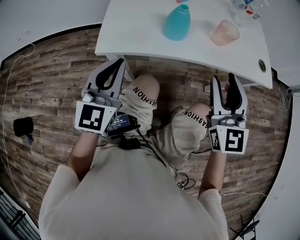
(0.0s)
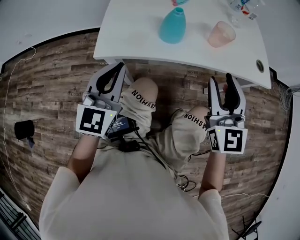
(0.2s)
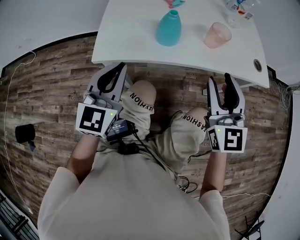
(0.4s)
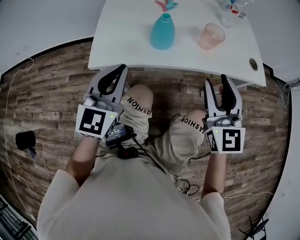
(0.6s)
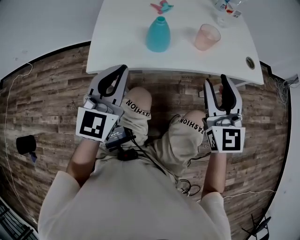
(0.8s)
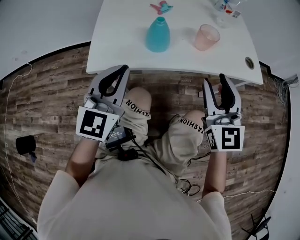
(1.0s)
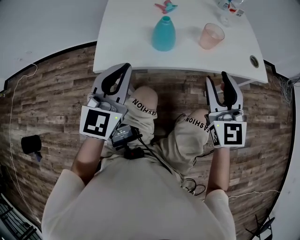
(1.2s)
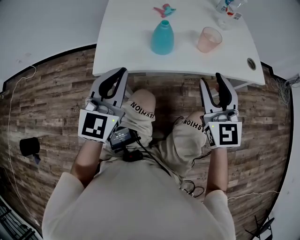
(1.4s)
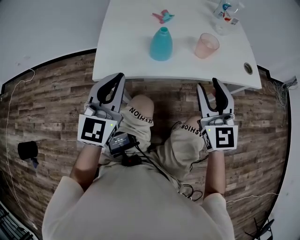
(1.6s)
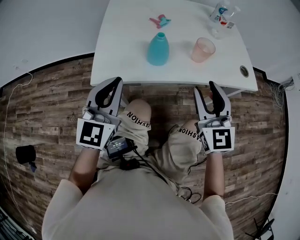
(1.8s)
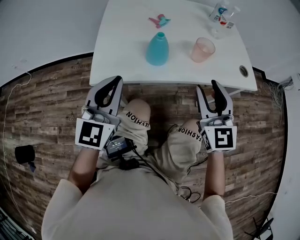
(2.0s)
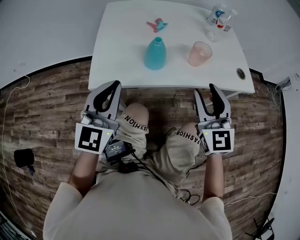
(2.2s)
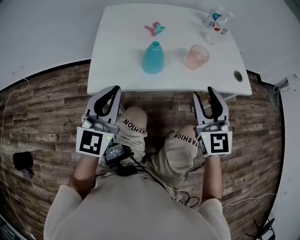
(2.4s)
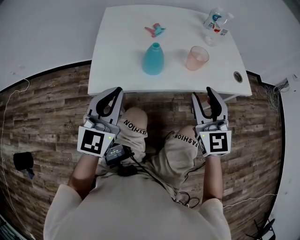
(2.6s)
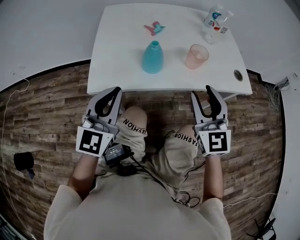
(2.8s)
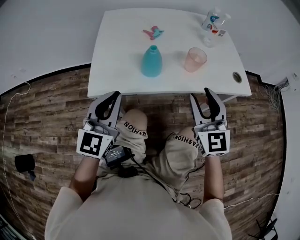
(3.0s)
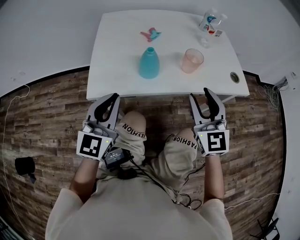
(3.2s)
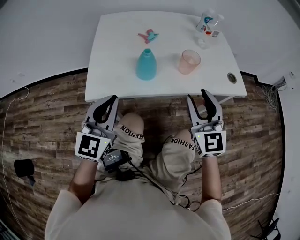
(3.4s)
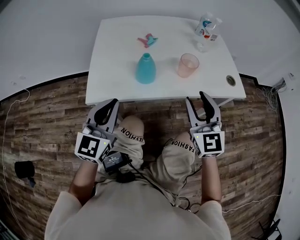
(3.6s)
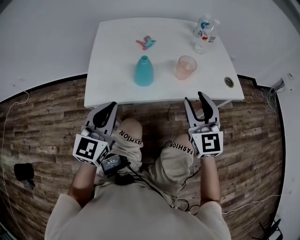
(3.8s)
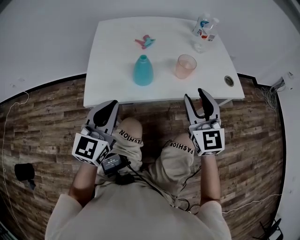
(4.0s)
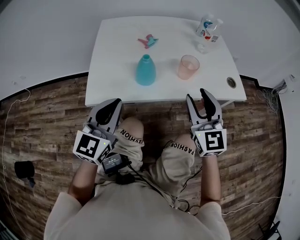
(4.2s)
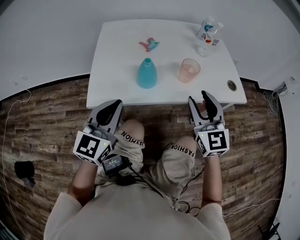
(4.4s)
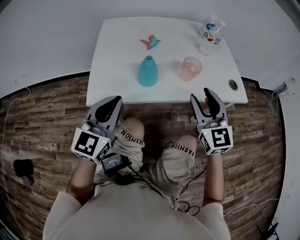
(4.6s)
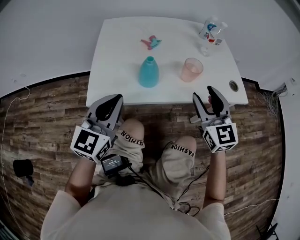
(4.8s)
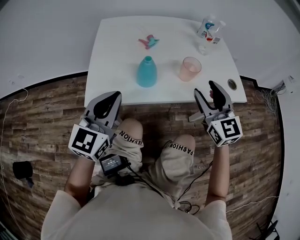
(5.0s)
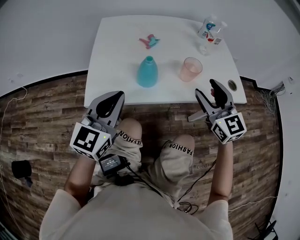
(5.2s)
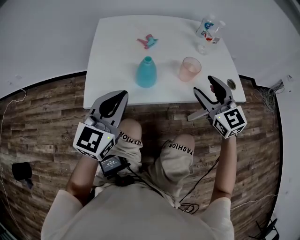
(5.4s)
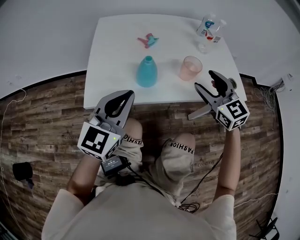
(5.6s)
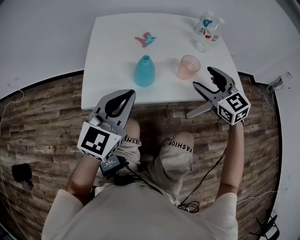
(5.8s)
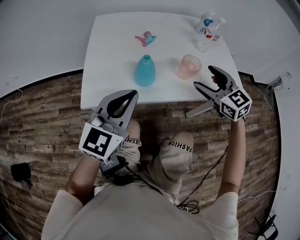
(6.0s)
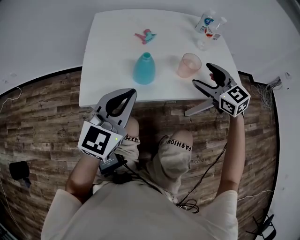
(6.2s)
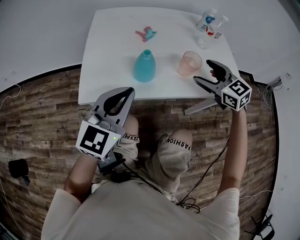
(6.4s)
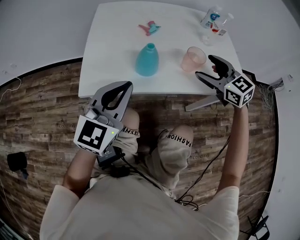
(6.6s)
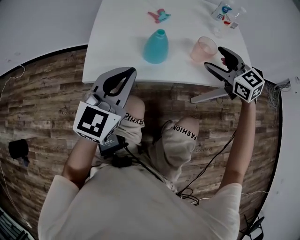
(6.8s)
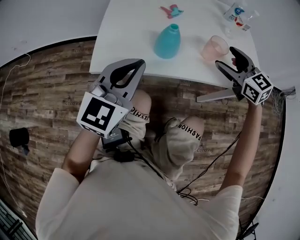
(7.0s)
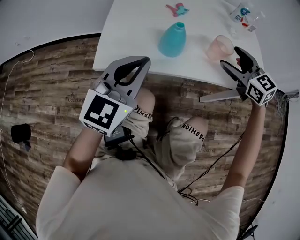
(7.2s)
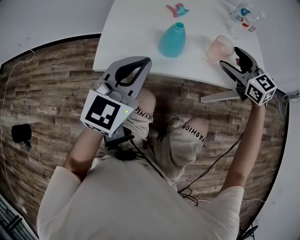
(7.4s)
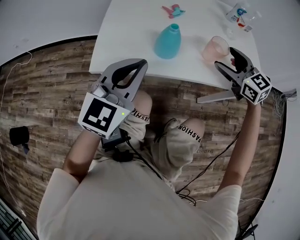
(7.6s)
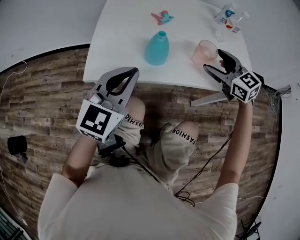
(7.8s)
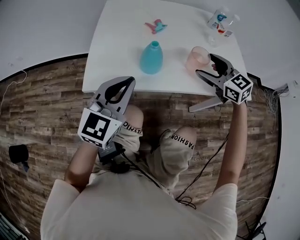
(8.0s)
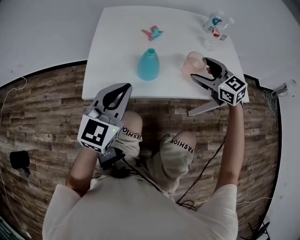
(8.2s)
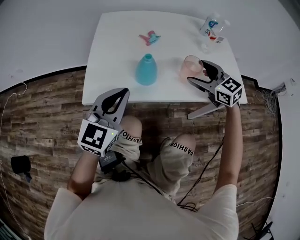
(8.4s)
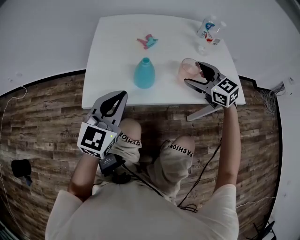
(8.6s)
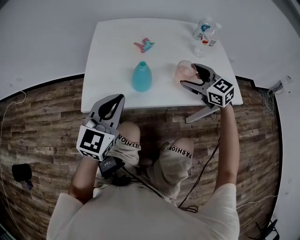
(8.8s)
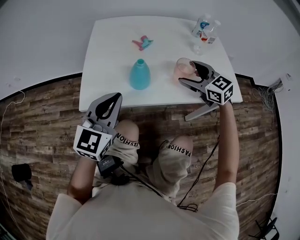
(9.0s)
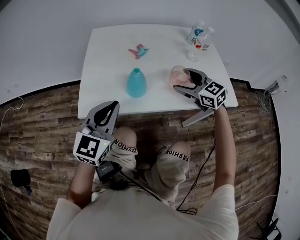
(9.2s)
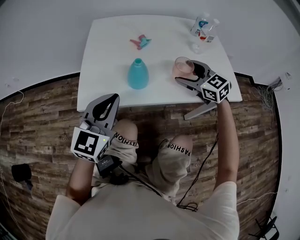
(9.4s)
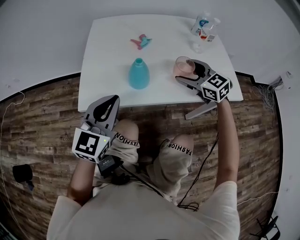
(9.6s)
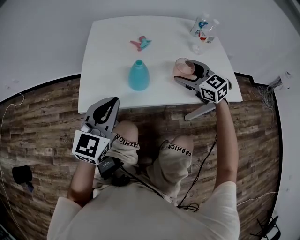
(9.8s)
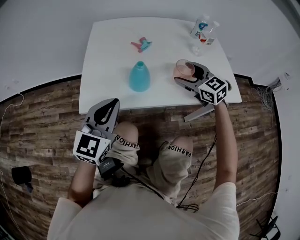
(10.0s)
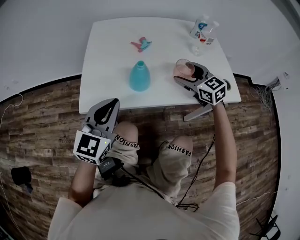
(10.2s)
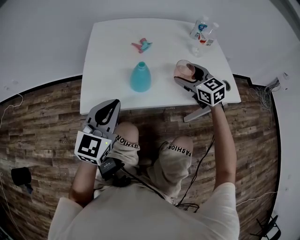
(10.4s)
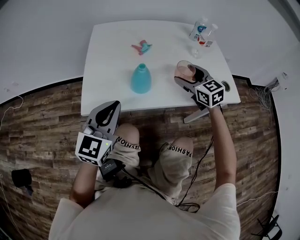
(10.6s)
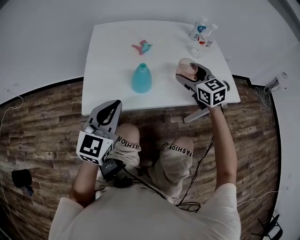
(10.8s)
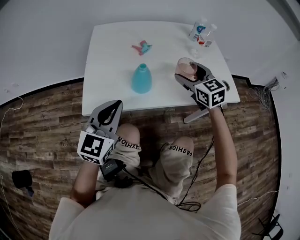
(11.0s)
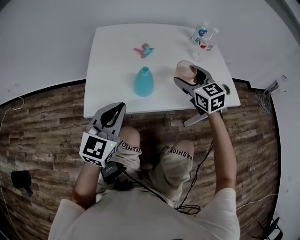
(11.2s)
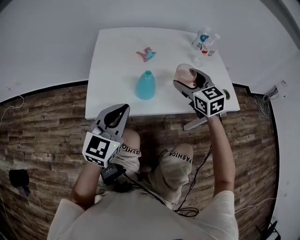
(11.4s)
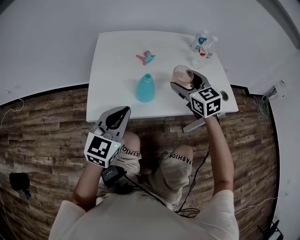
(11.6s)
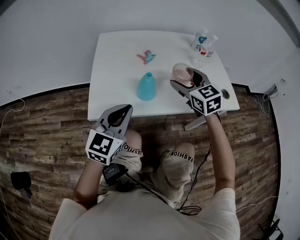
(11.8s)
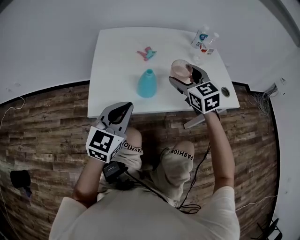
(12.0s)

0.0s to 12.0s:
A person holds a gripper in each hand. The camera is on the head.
0.0s to 1.6s: The left gripper ends up some 5 cm from where it was.
1.6s to 4.4s: The grippers make only small movements.
4.4s to 6.0s: The left gripper moves approximately 5 cm, while the right gripper travels forward by some 10 cm, turns by approximately 30 degrees, and opens up.
6.0s to 9.0s: The grippers make only small movements.
9.0s to 10.4s: There are only small adjustments of the grippers.
10.4s to 12.0s: The right gripper travels upward and to the left by roughly 10 cm.

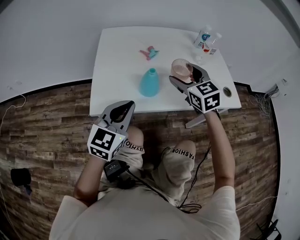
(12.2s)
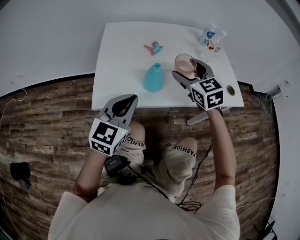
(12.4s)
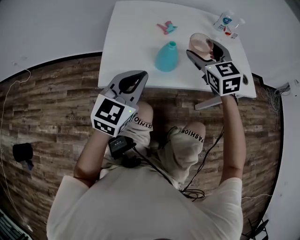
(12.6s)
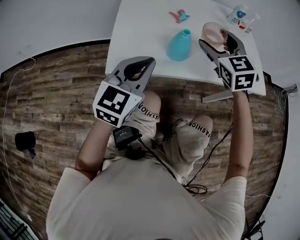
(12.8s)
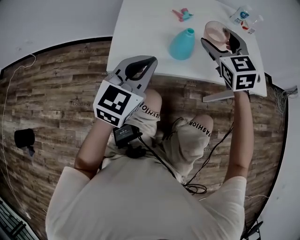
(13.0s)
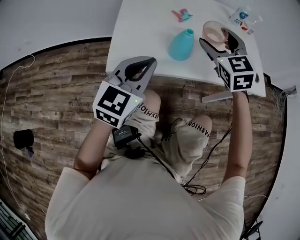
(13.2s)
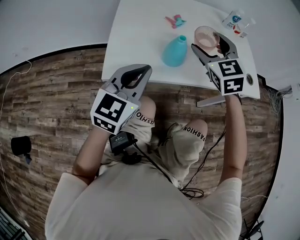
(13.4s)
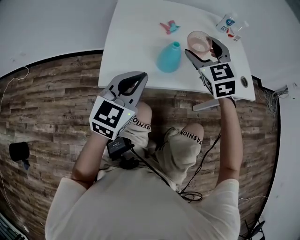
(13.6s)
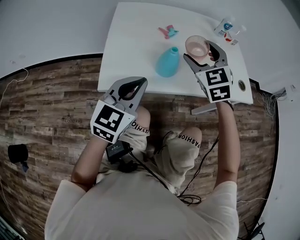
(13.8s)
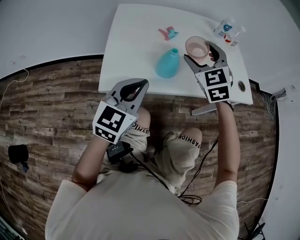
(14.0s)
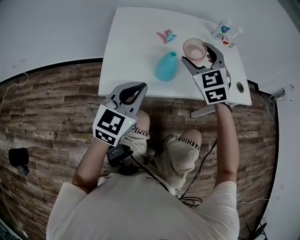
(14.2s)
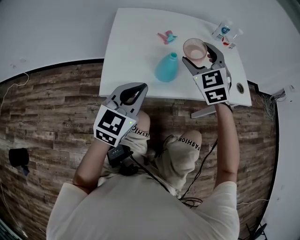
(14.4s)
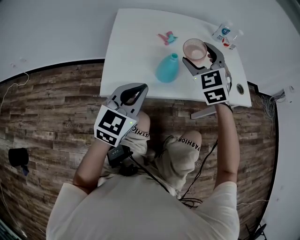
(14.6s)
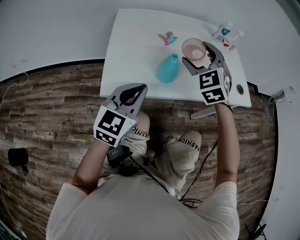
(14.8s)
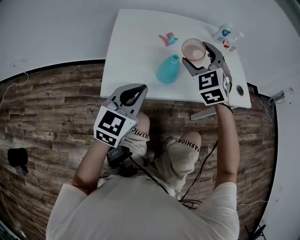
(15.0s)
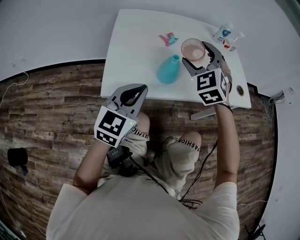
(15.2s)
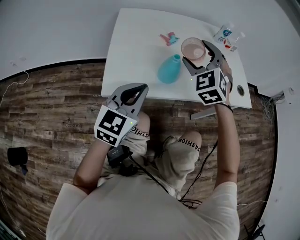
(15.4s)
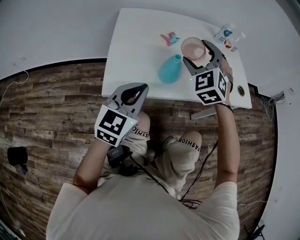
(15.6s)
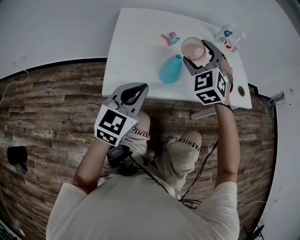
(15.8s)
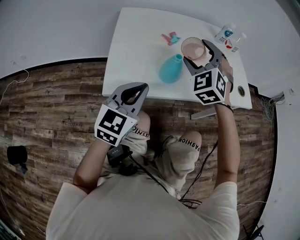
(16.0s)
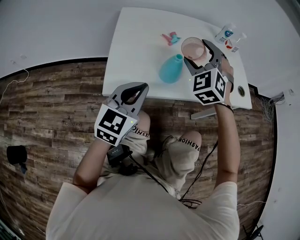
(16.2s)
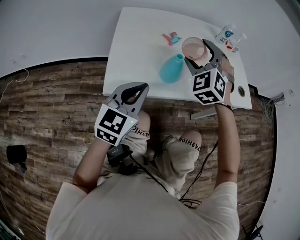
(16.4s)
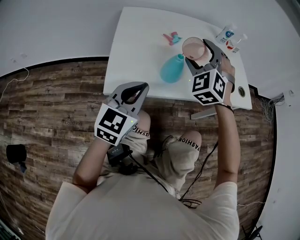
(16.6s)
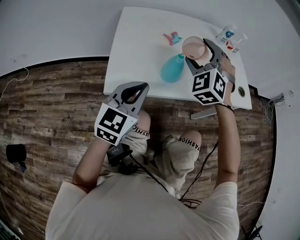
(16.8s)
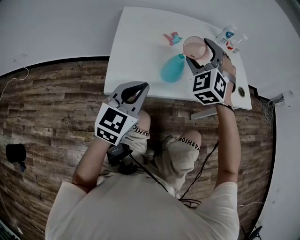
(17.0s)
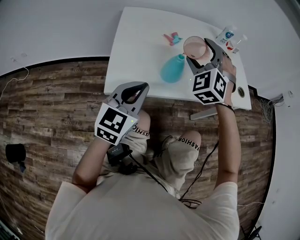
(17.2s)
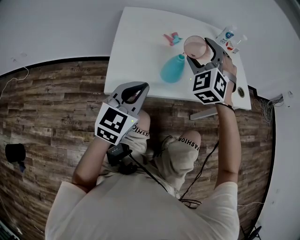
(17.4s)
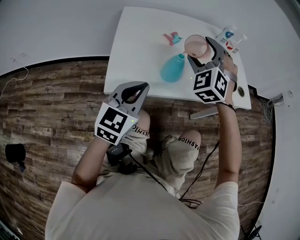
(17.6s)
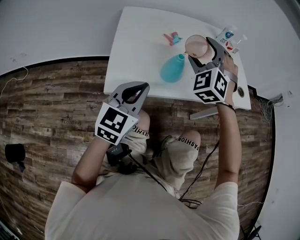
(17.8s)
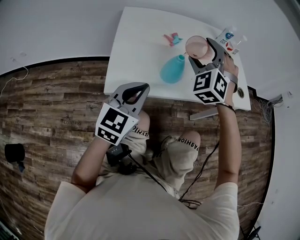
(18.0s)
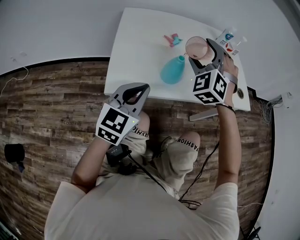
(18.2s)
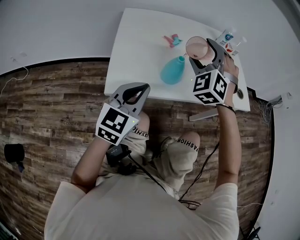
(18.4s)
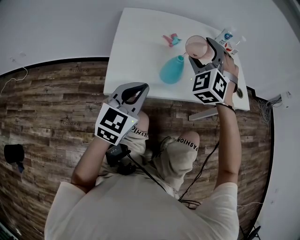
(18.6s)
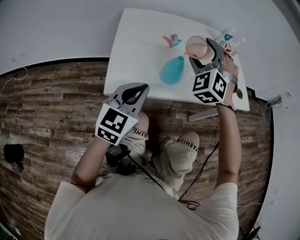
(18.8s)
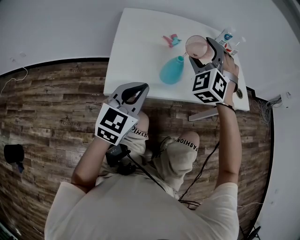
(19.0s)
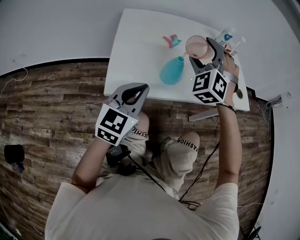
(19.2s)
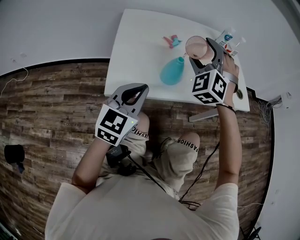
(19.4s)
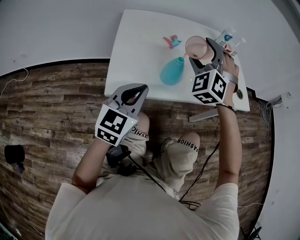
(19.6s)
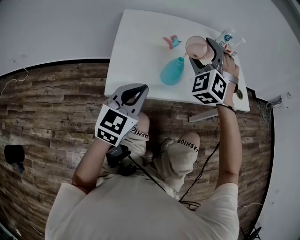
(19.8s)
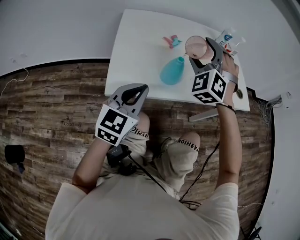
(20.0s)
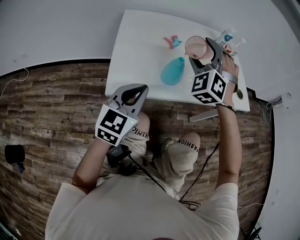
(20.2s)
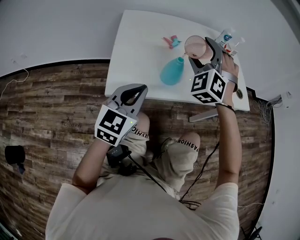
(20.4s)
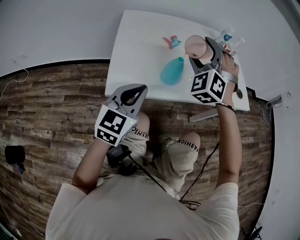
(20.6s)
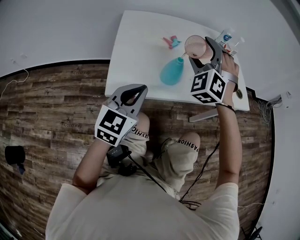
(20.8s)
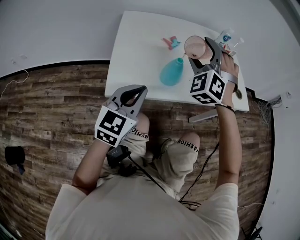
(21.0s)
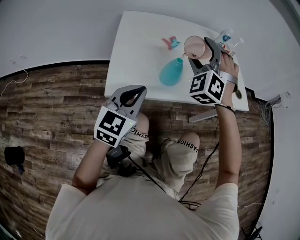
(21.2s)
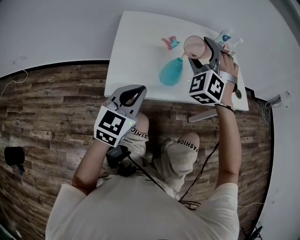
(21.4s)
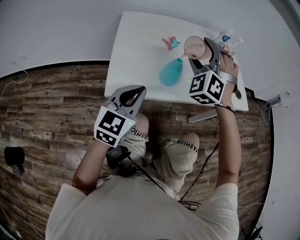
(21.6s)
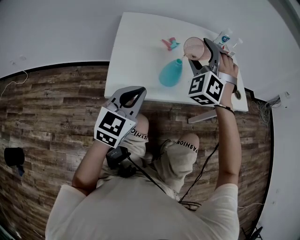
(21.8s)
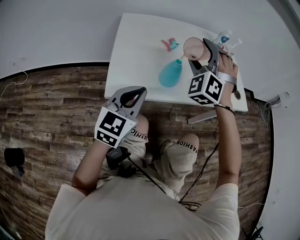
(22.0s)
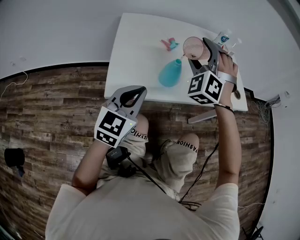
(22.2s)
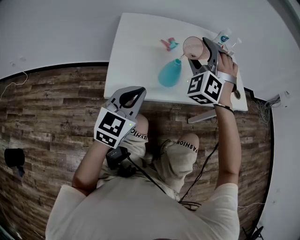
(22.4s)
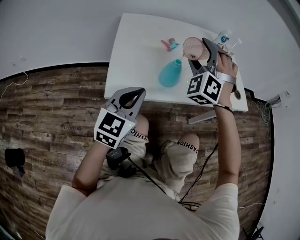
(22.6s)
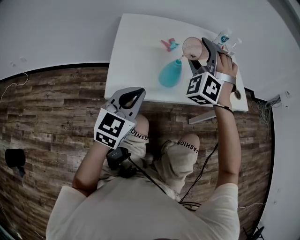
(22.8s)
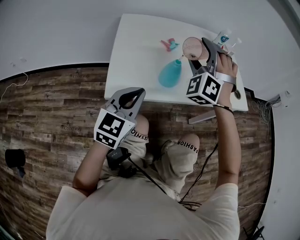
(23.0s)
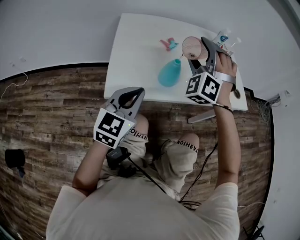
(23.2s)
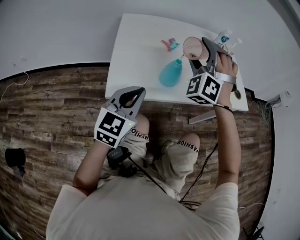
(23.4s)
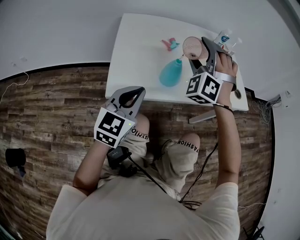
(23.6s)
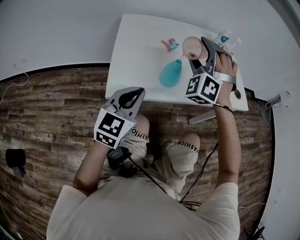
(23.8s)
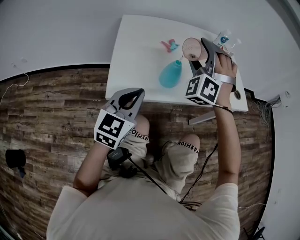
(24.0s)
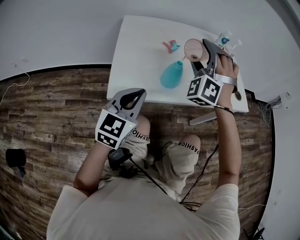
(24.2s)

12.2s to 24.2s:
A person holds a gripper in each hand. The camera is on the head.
12.2s to 13.8s: The grippers make only small movements.
13.8s to 15.2s: The grippers make only small movements.
15.2s to 18.2s: The grippers move only a little.
18.2s to 19.8s: The two grippers keep their place.
19.8s to 21.2s: Both grippers stay about where they are.
21.2s to 22.6s: Both grippers stay put.
22.6s to 24.2s: There are only small adjustments of the grippers.
